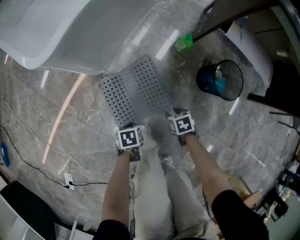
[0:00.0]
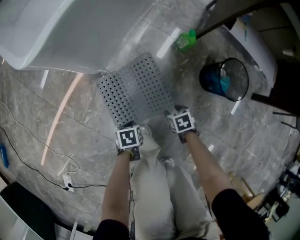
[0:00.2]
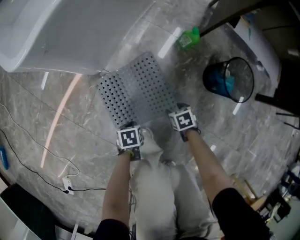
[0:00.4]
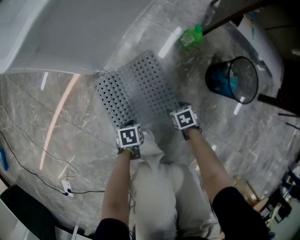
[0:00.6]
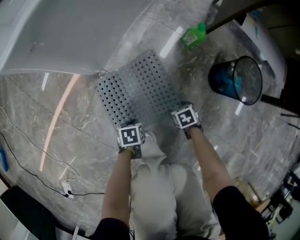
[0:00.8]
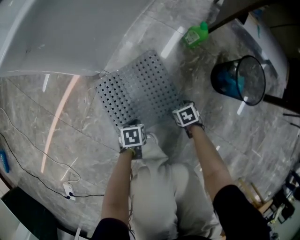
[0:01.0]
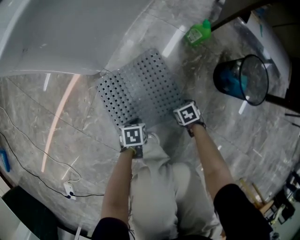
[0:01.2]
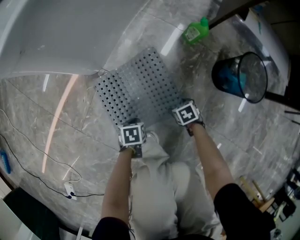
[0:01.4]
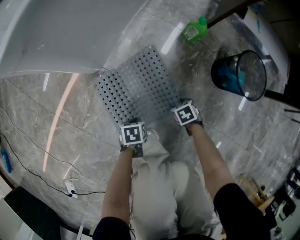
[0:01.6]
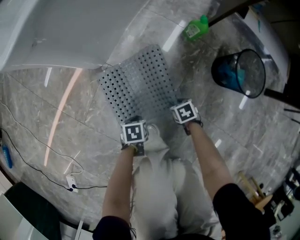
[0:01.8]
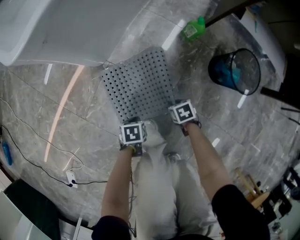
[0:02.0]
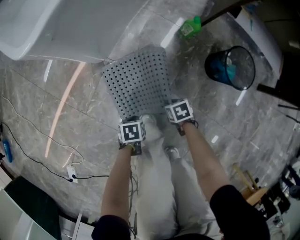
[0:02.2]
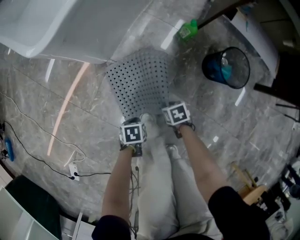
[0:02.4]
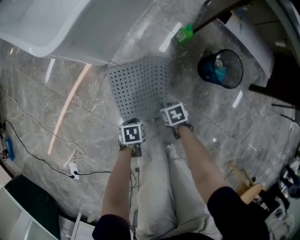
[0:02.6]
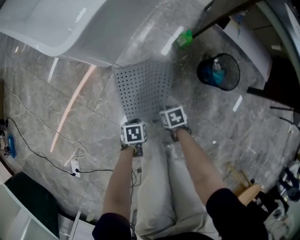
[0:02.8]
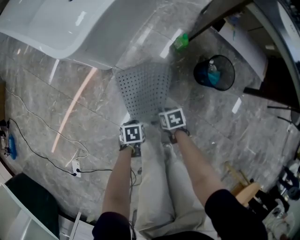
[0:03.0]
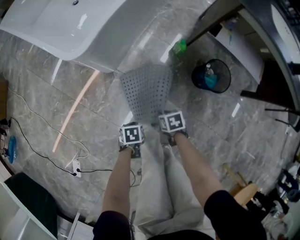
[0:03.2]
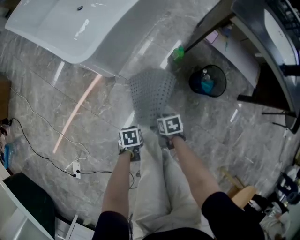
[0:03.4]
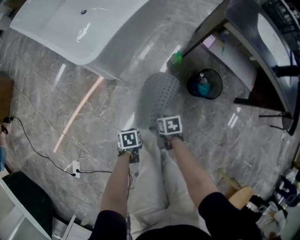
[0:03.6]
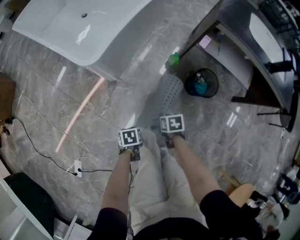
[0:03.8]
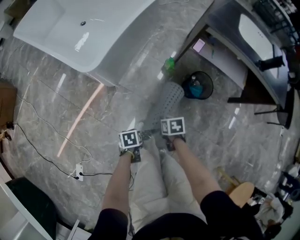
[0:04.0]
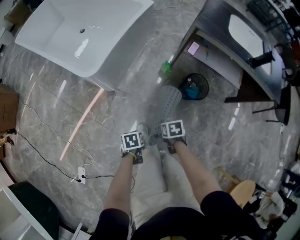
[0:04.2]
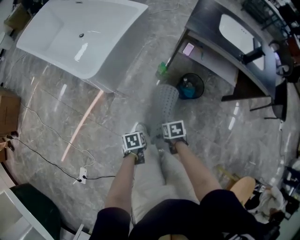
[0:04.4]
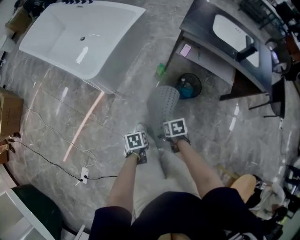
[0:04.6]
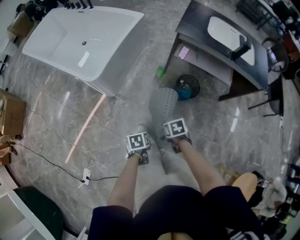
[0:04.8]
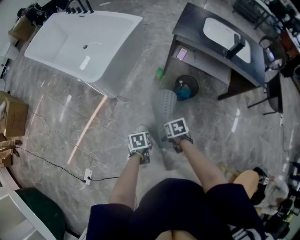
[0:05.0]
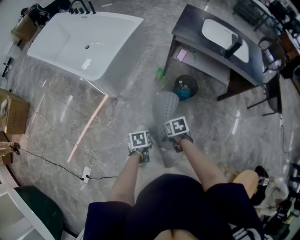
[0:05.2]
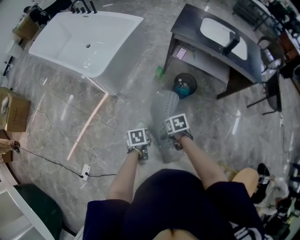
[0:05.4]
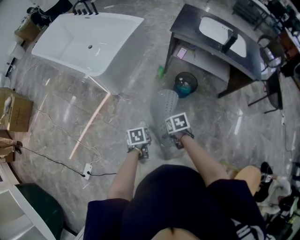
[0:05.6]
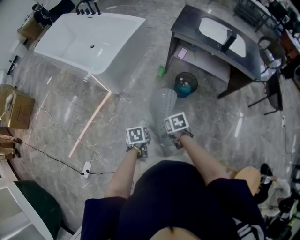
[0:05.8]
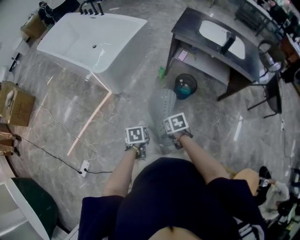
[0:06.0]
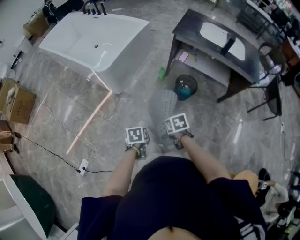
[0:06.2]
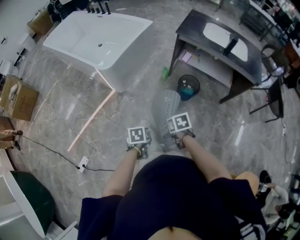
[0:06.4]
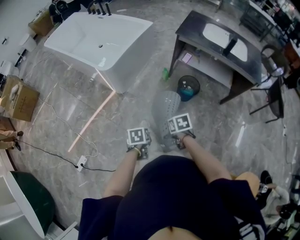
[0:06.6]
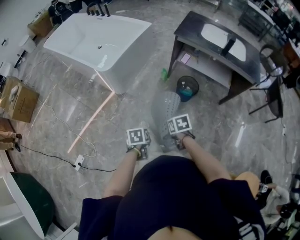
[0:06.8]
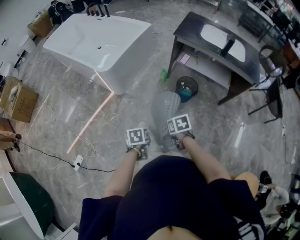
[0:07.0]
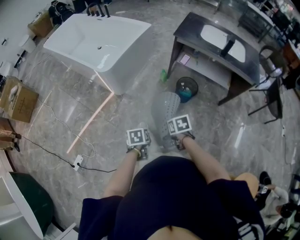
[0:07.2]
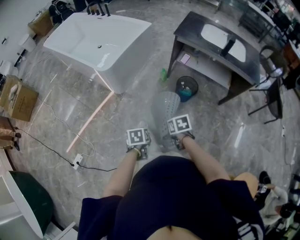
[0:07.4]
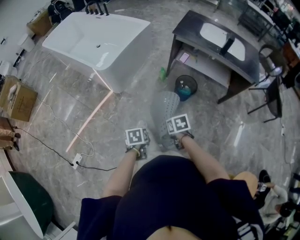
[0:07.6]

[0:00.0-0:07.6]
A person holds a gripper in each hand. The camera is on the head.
0.0 to 1.6 s: The right gripper heads downward, covering about 15 cm, and opens, then closes once more.
1.6 to 3.0 s: The right gripper shifts roughly 30 cm upward, and closes its fingers.
3.0 to 4.6 s: The right gripper heads upward, covering about 30 cm.
4.6 to 6.0 s: The right gripper changes place by roughly 15 cm.

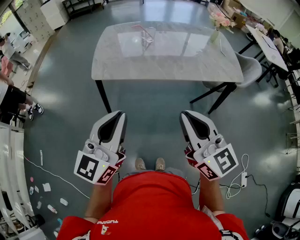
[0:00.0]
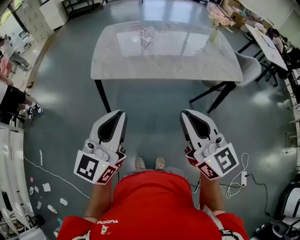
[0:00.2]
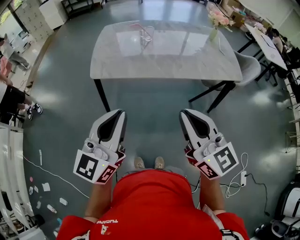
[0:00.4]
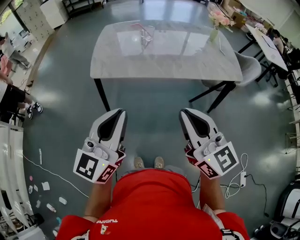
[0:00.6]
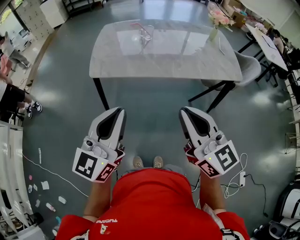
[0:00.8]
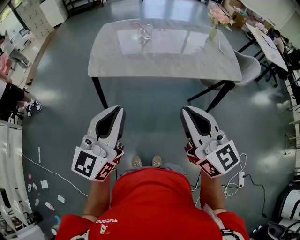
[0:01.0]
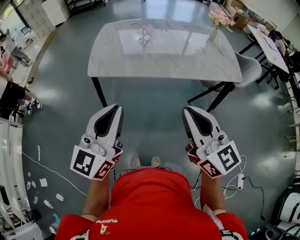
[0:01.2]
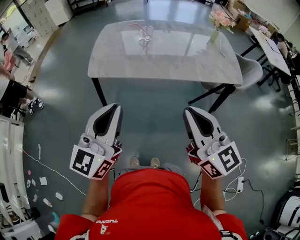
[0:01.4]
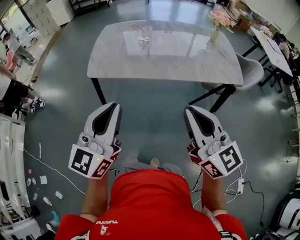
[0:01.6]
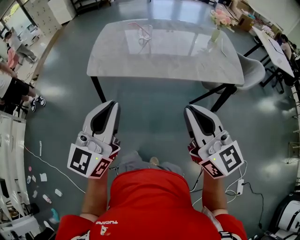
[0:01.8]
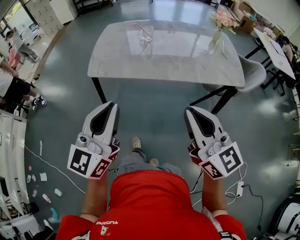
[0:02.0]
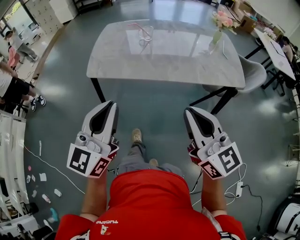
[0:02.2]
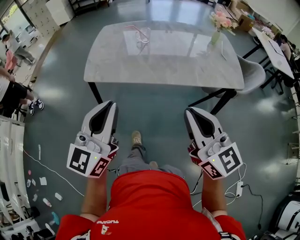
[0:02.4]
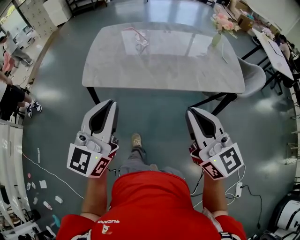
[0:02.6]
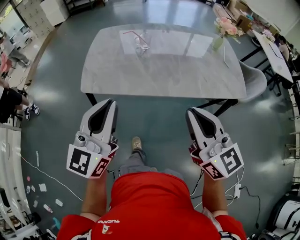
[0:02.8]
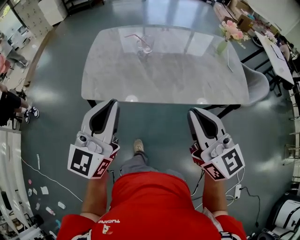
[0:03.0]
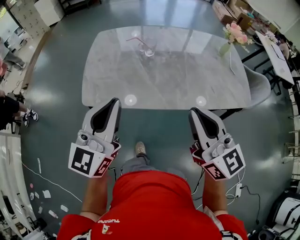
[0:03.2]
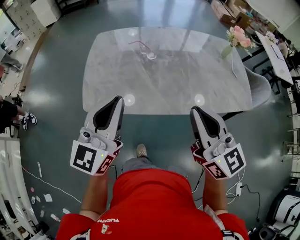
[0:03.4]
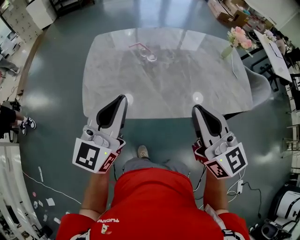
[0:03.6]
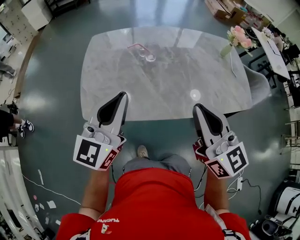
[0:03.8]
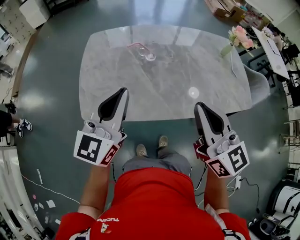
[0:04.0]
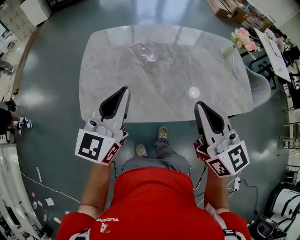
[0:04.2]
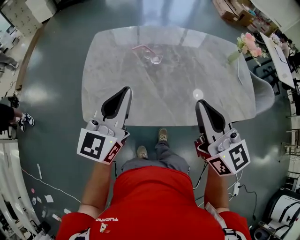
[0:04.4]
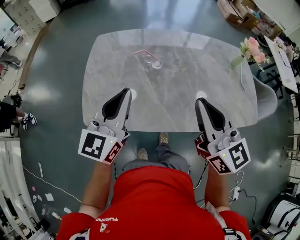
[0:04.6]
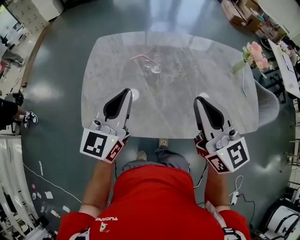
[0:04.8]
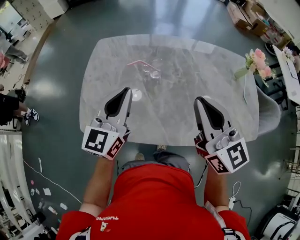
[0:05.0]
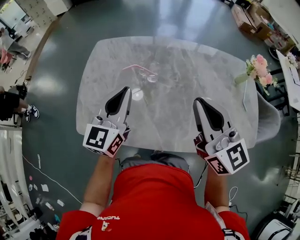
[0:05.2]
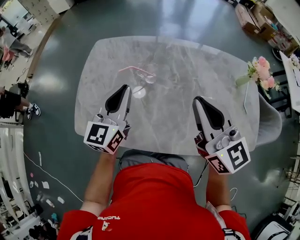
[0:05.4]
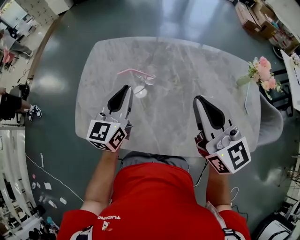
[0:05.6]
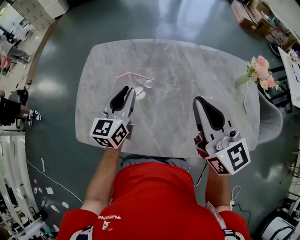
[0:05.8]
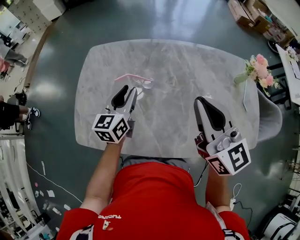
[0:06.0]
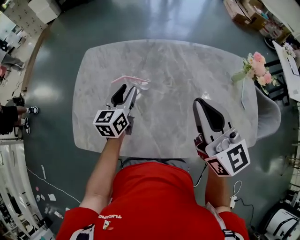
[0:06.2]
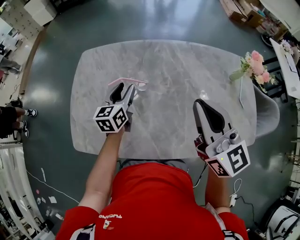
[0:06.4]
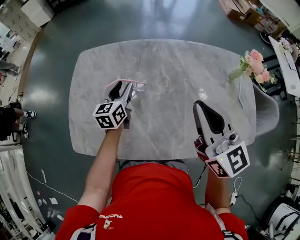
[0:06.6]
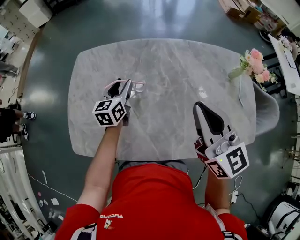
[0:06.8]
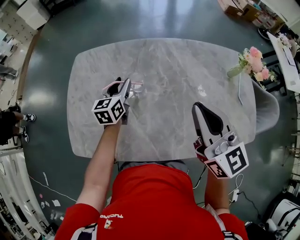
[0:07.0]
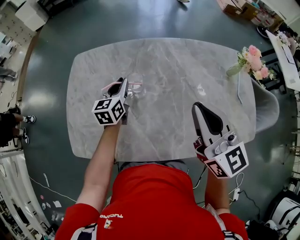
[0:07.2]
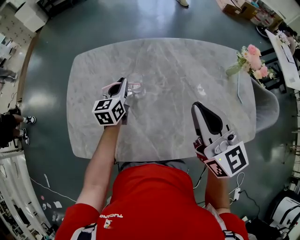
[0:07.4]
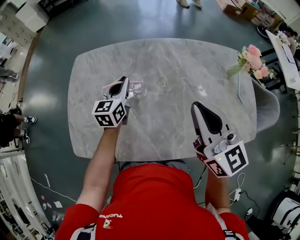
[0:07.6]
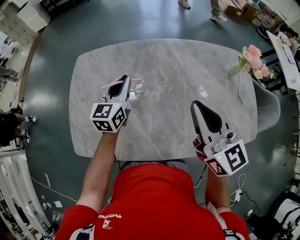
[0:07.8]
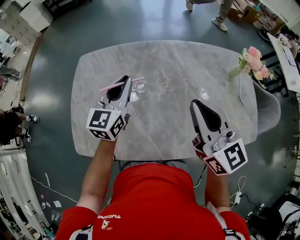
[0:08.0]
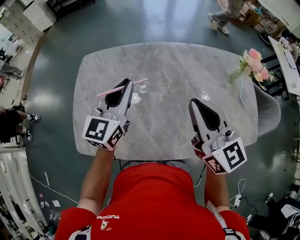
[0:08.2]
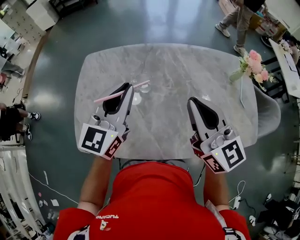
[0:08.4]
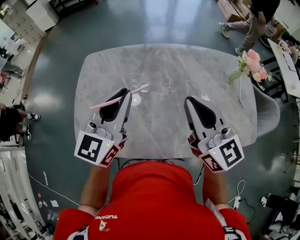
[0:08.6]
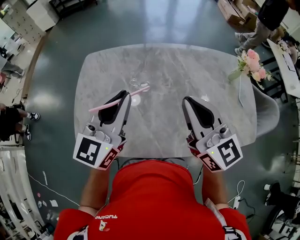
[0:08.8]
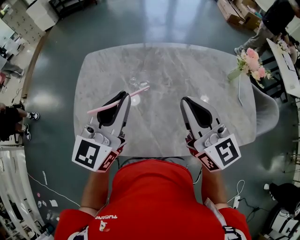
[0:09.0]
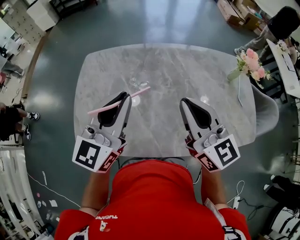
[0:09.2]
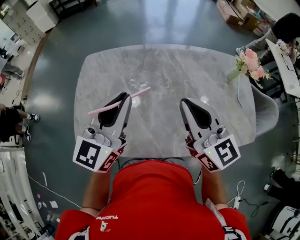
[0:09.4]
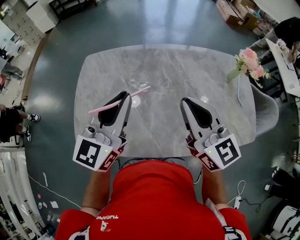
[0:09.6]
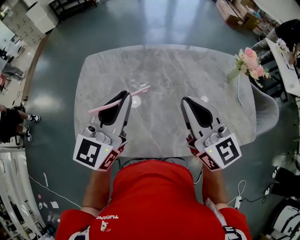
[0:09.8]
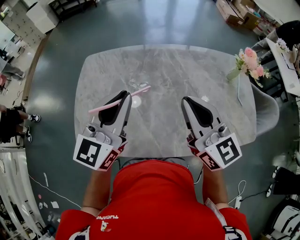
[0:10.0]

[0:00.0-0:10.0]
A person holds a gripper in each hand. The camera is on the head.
0.0 to 1.4 s: The right gripper travels to the right by approximately 5 cm.
1.4 to 2.8 s: The grippers both shift forward by some 15 cm.
2.8 to 4.2 s: Both grippers move forward, about 20 cm.
4.2 to 5.8 s: The right gripper is displaced forward and to the right by about 20 cm. Meanwhile the left gripper goes approximately 25 cm forward, downward and to the right, and changes its angle by some 20 degrees.
5.8 to 7.2 s: The left gripper travels forward and downward by roughly 15 cm, and opens and closes again.
7.2 to 8.6 s: The left gripper heads upward and backward, covering roughly 25 cm, and swivels roughly 30 degrees.
8.6 to 10.0 s: The grippers stay close to where they were, moving slightly.

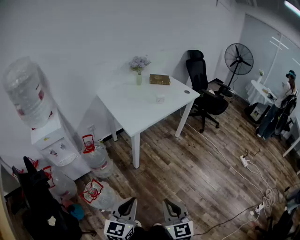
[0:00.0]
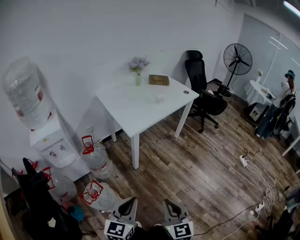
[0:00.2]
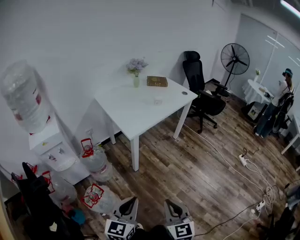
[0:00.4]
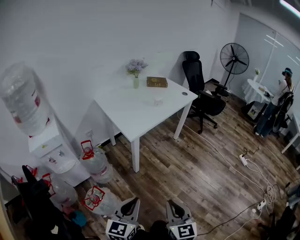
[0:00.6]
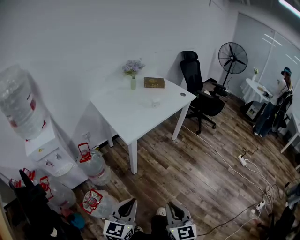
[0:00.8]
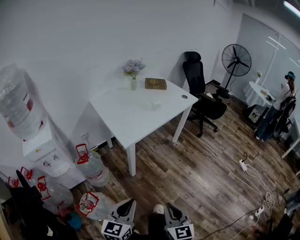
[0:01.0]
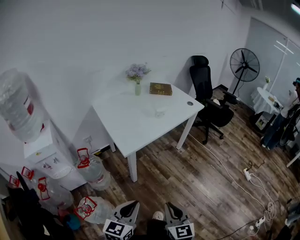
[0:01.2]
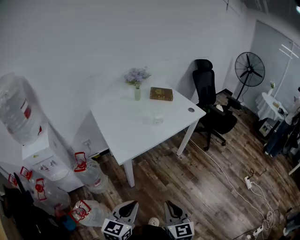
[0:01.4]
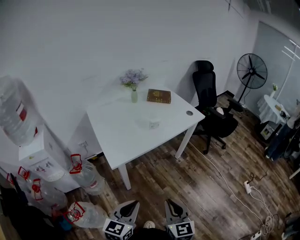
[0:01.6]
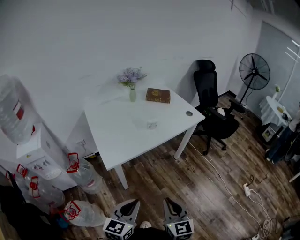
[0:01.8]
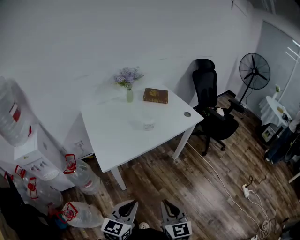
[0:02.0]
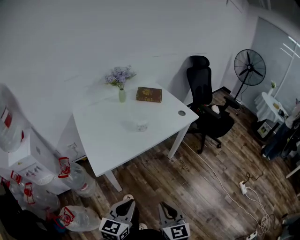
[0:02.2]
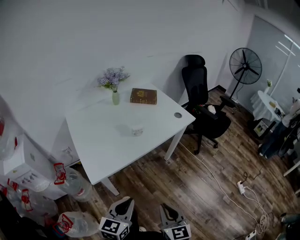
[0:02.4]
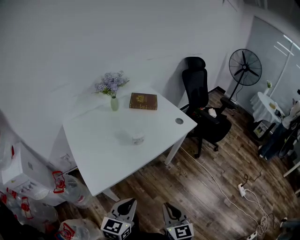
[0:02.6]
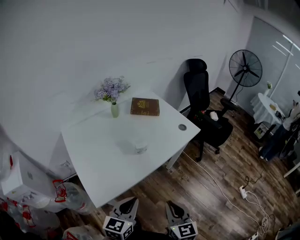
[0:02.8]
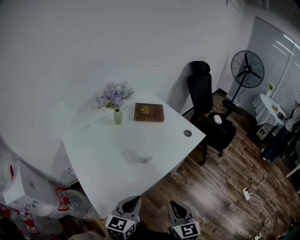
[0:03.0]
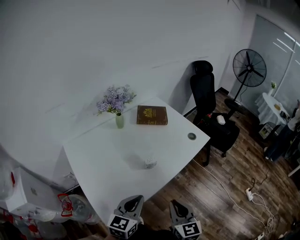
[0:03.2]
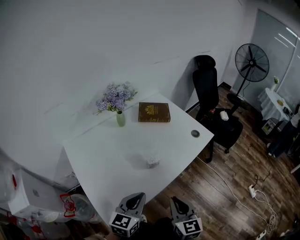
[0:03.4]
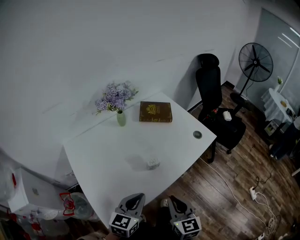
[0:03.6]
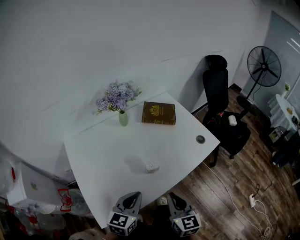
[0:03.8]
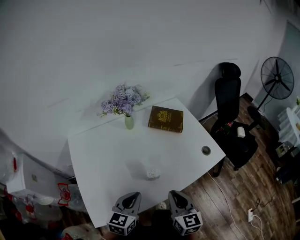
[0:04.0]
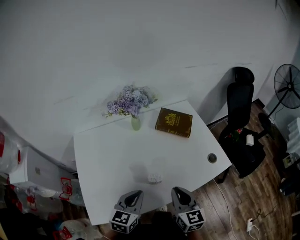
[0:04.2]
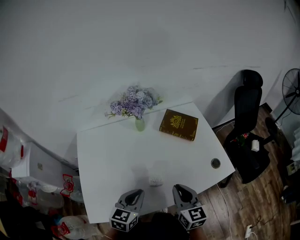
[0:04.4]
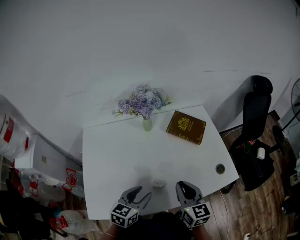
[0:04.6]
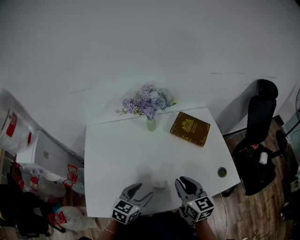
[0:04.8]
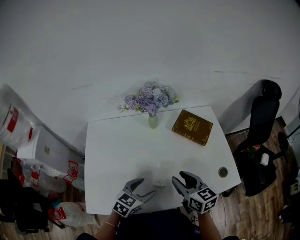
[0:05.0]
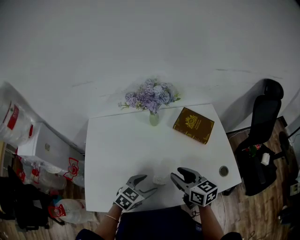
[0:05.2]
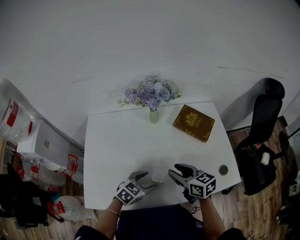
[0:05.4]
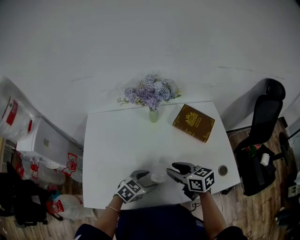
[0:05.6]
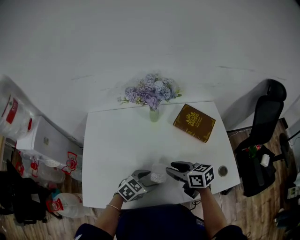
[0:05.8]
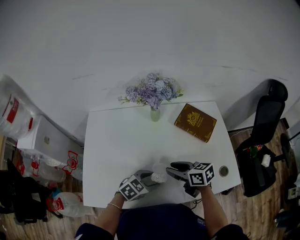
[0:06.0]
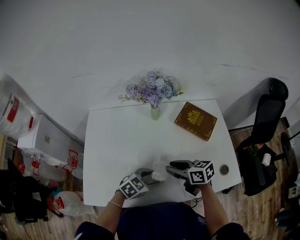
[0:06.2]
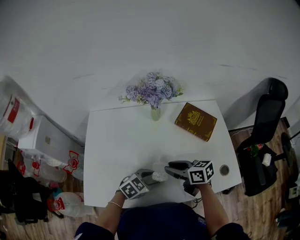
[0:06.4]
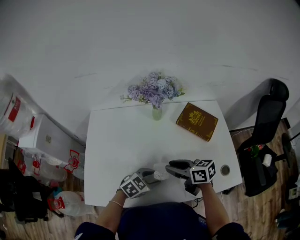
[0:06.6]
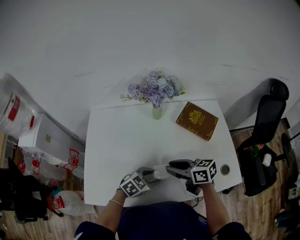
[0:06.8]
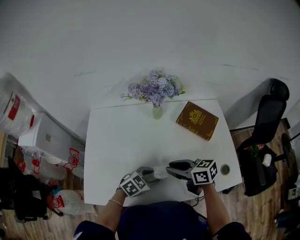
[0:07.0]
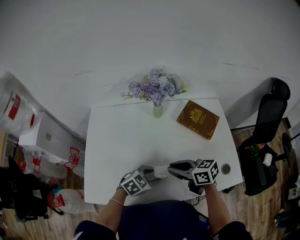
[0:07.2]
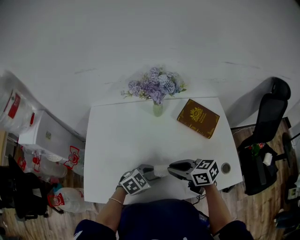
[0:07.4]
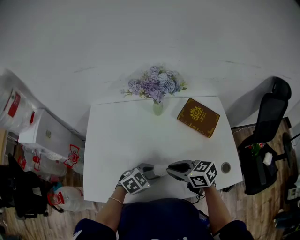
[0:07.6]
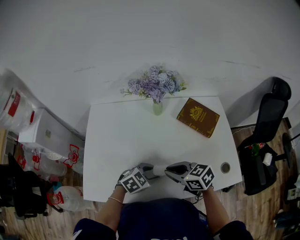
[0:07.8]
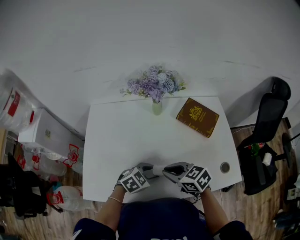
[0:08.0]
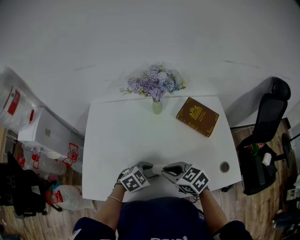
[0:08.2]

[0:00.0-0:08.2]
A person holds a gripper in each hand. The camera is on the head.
0.0 to 1.6 s: Both grippers travel together forward and to the right, approximately 30 cm.
1.6 to 3.2 s: The two grippers go about 35 cm forward.
3.2 to 5.0 s: The right gripper changes place by some 30 cm, swivels some 50 degrees, and opens its fingers. Meanwhile the left gripper moves approximately 20 cm, turns by some 20 degrees, and opens.
5.0 to 6.6 s: The left gripper travels downward by roughly 5 cm; the right gripper moves approximately 5 cm, and rotates roughly 30 degrees.
6.6 to 8.2 s: The right gripper moves some 5 cm, and changes its angle by approximately 30 degrees.
